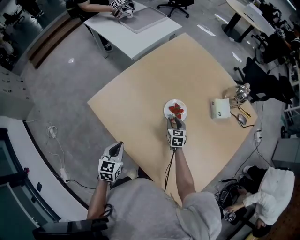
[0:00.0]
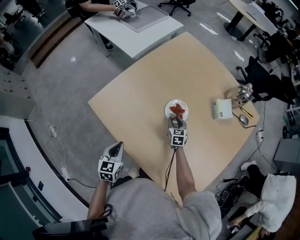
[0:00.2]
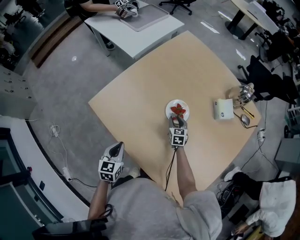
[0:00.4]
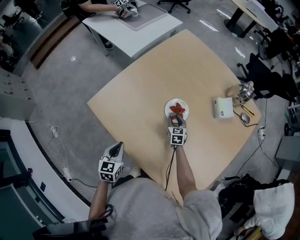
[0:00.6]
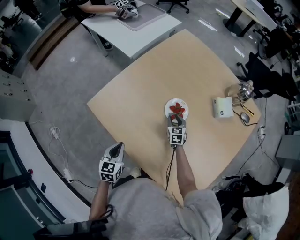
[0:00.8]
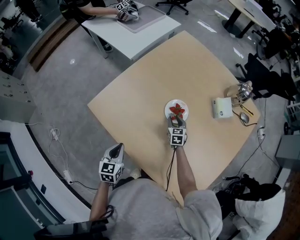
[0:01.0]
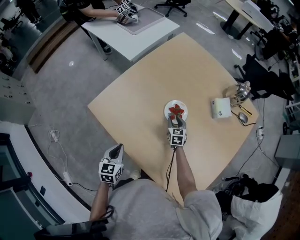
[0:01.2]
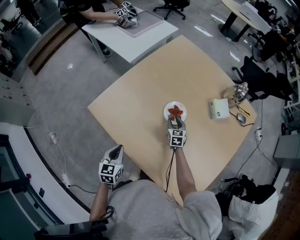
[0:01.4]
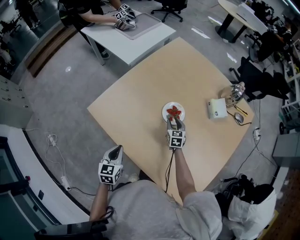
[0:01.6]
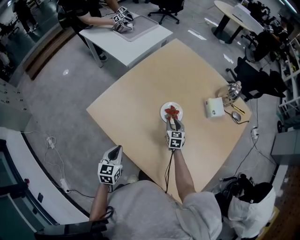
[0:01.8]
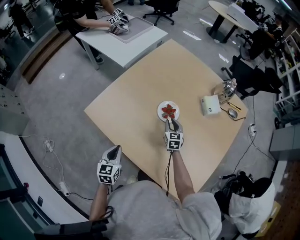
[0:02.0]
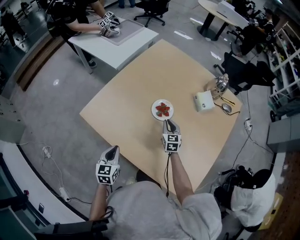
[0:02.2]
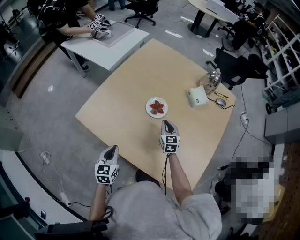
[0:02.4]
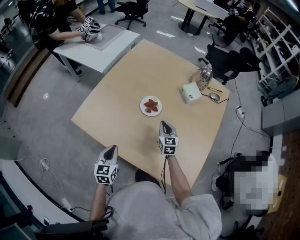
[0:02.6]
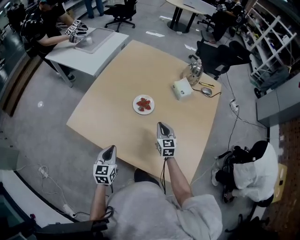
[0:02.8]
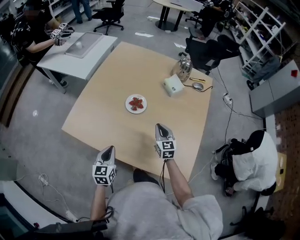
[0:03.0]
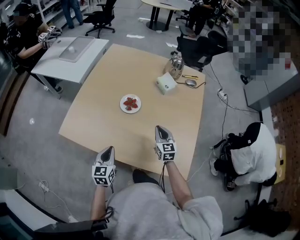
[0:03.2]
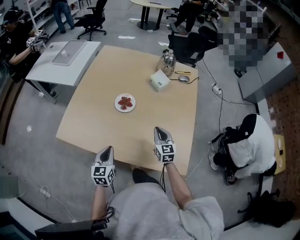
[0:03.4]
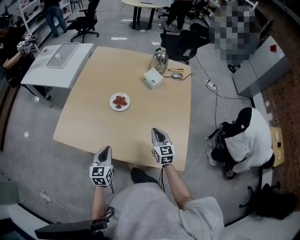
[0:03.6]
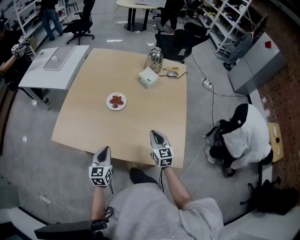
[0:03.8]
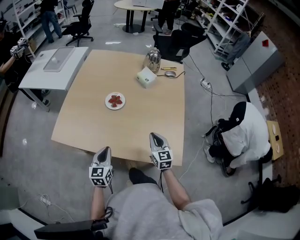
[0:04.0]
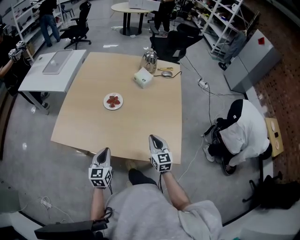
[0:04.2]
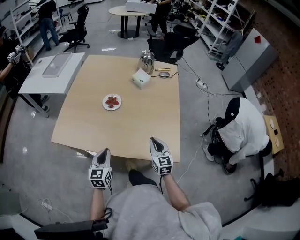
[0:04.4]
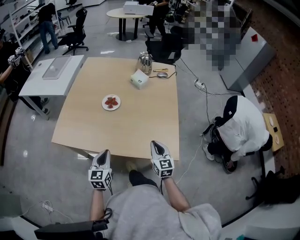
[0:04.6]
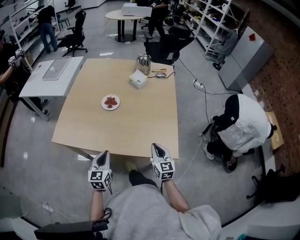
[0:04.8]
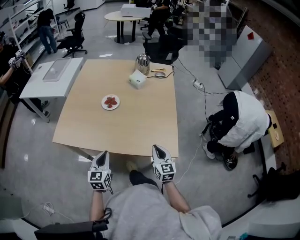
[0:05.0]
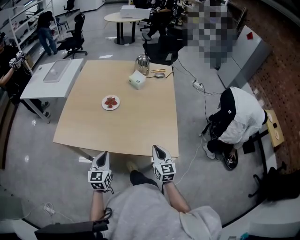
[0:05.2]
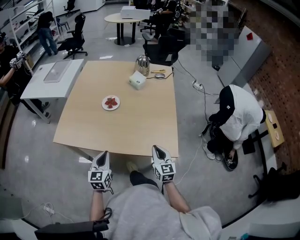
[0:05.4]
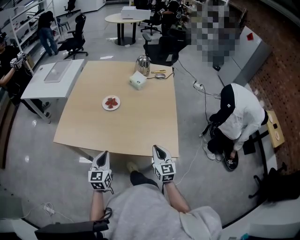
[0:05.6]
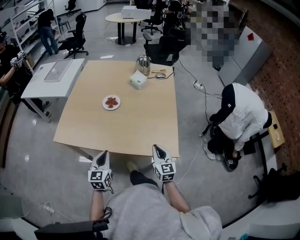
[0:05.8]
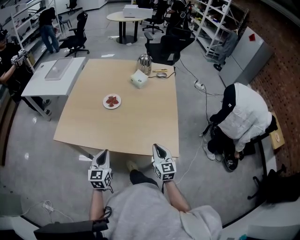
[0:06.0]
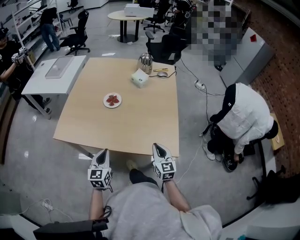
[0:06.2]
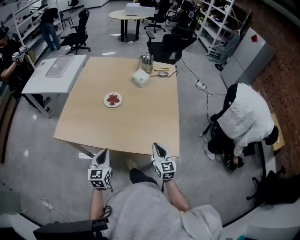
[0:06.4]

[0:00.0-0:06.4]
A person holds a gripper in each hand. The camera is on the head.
0.0 to 1.6 s: The grippers stay close to where they were, moving slightly.
1.6 to 3.2 s: The left gripper is displaced to the right by about 10 cm, and turns by approximately 20 degrees. The right gripper travels backward, upward and to the right by approximately 25 cm, swivels roughly 20 degrees, and closes up.
3.2 to 4.8 s: The right gripper shifts some 25 cm backward. Meanwhile the left gripper goes about 10 cm backward and to the right.
4.8 to 6.4 s: The grippers stay close to where they were, moving slightly.

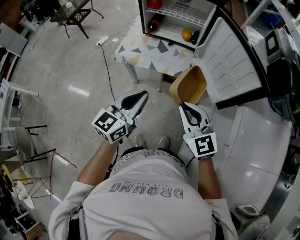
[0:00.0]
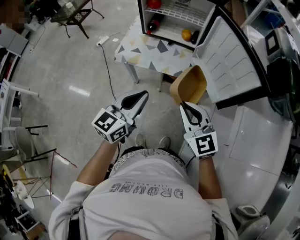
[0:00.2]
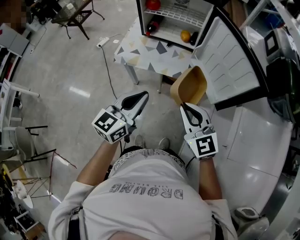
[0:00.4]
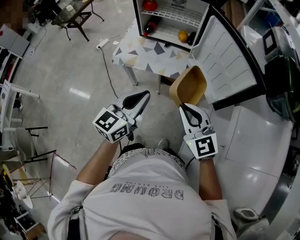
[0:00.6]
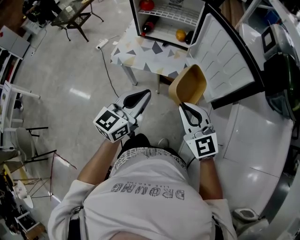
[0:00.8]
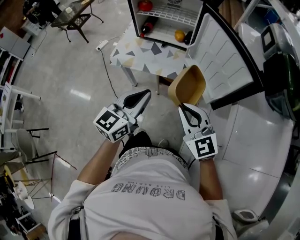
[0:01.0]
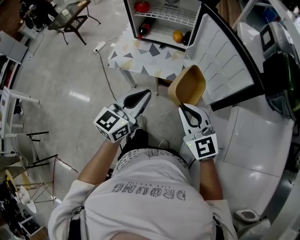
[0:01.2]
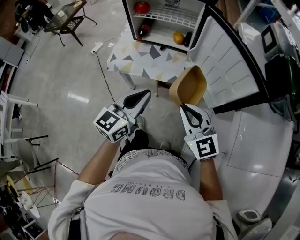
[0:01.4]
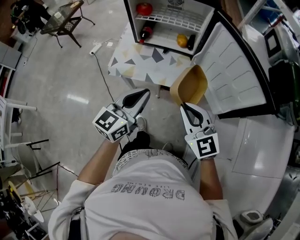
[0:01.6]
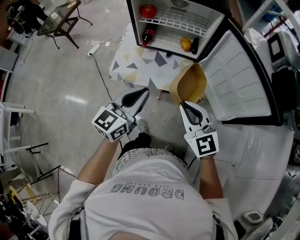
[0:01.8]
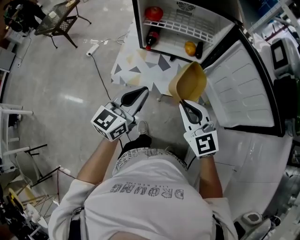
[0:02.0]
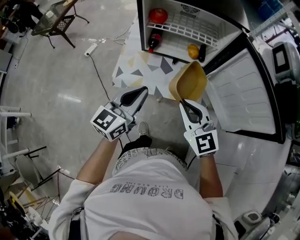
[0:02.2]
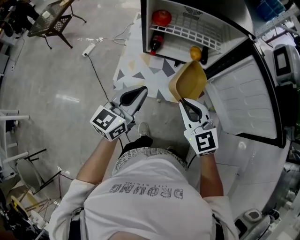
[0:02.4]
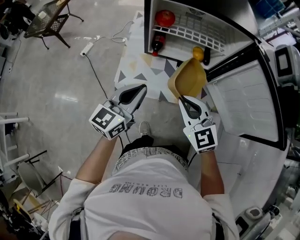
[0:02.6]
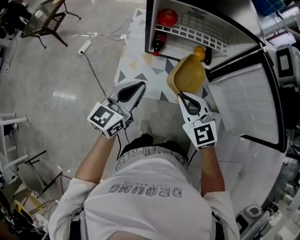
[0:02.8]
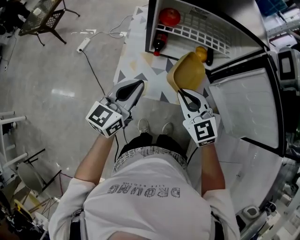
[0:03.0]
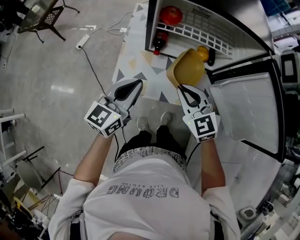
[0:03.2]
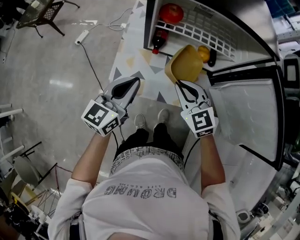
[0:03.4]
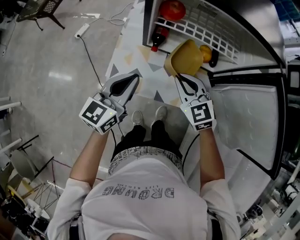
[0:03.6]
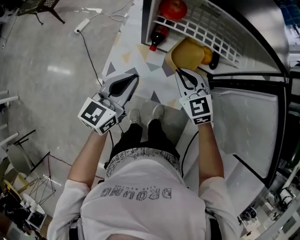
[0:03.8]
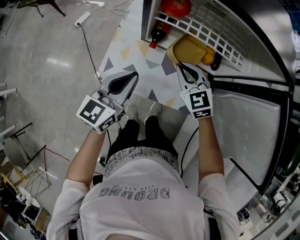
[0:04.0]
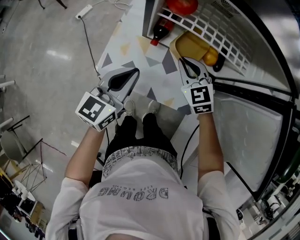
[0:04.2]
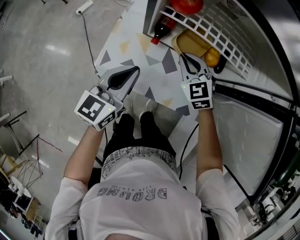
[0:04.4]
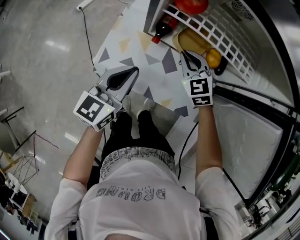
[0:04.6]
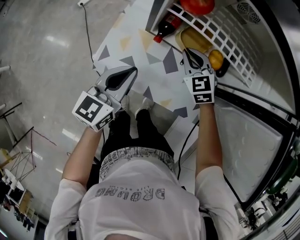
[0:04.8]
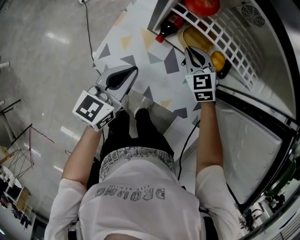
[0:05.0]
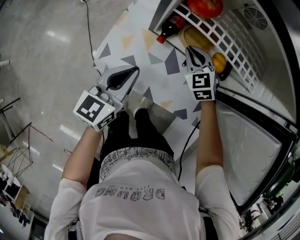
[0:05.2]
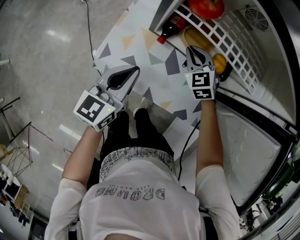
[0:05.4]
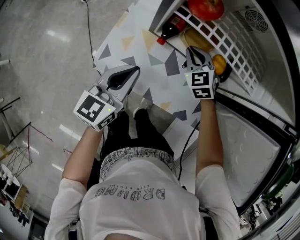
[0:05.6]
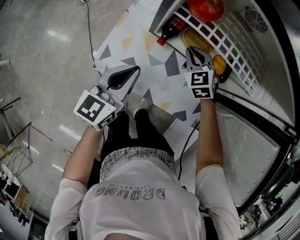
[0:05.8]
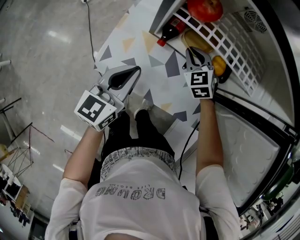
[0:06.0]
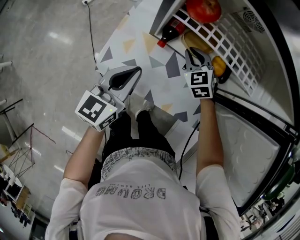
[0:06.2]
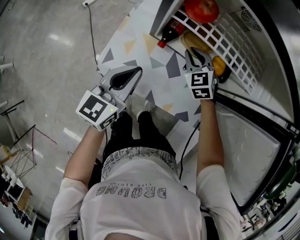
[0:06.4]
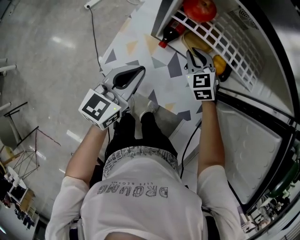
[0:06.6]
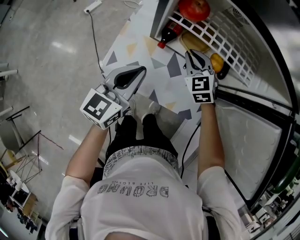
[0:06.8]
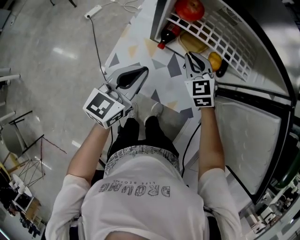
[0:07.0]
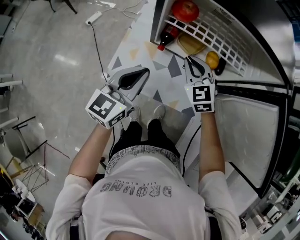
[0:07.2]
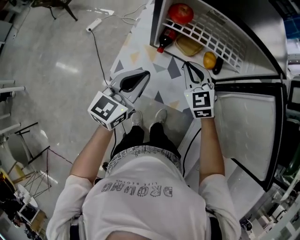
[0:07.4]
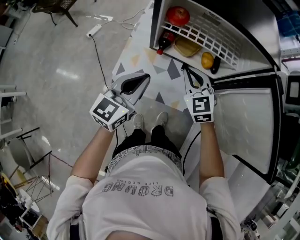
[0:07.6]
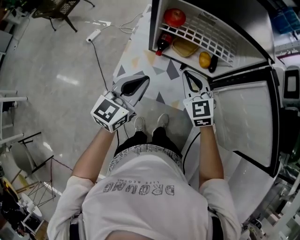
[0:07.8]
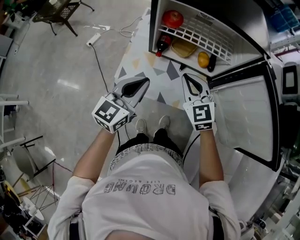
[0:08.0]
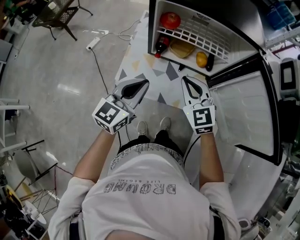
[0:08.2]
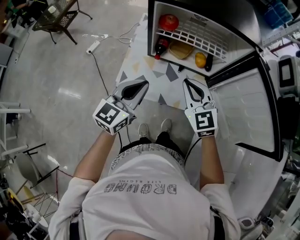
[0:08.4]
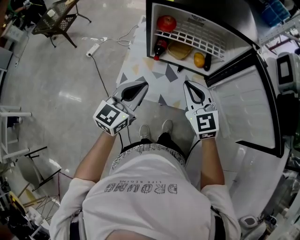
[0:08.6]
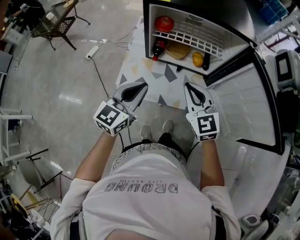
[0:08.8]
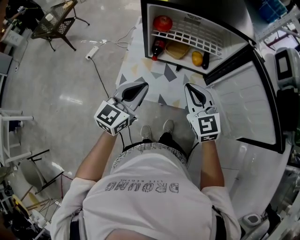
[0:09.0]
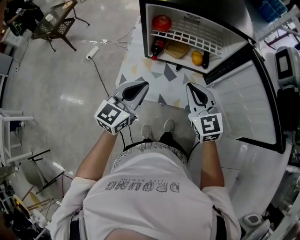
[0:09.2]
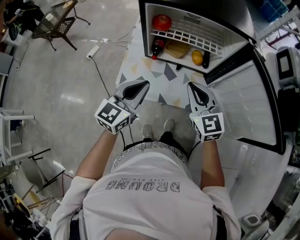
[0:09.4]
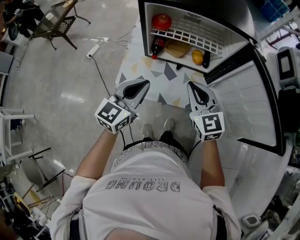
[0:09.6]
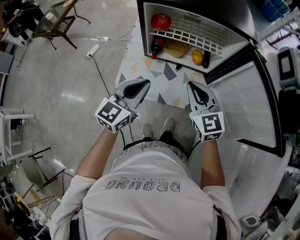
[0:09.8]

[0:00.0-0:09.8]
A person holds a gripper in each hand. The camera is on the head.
0.0 to 1.4 s: The left gripper heads forward, covering some 5 cm. The right gripper changes place by about 5 cm.
1.4 to 2.8 s: The grippers both shift forward and to the left by roughly 30 cm.
2.8 to 4.2 s: The right gripper is displaced forward and downward by about 25 cm. The left gripper travels downward and forward by approximately 10 cm.
4.2 to 5.6 s: The right gripper is displaced forward and downward by about 10 cm.
5.6 to 7.0 s: The two grippers go approximately 5 cm upward.
7.0 to 8.4 s: The right gripper goes approximately 20 cm backward and upward. The left gripper heads backward and upward, covering approximately 10 cm.
8.4 to 9.8 s: The grippers stay close to where they were, moving slightly.

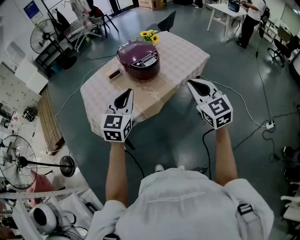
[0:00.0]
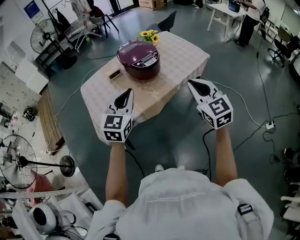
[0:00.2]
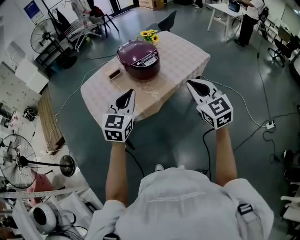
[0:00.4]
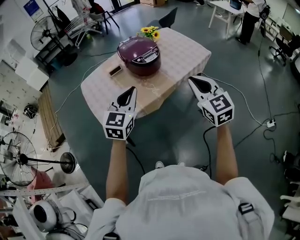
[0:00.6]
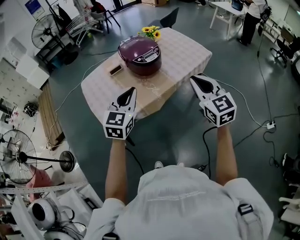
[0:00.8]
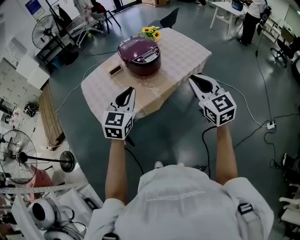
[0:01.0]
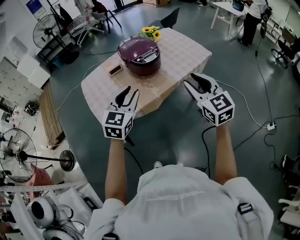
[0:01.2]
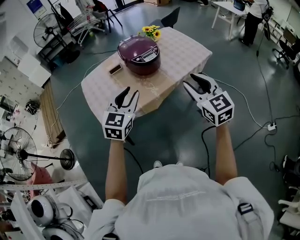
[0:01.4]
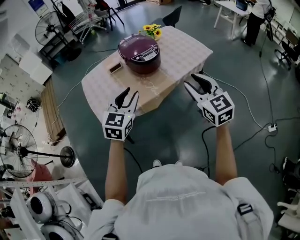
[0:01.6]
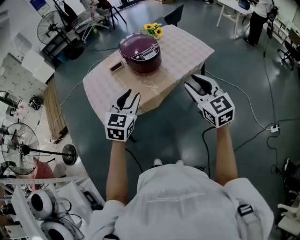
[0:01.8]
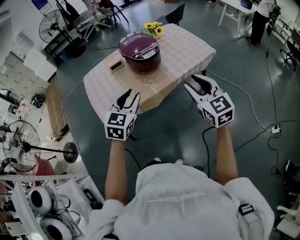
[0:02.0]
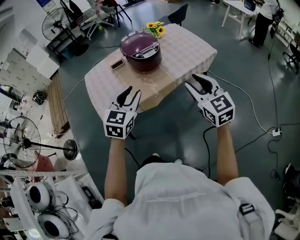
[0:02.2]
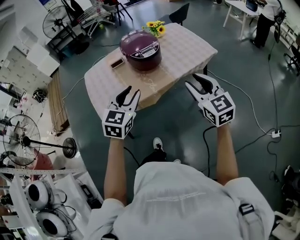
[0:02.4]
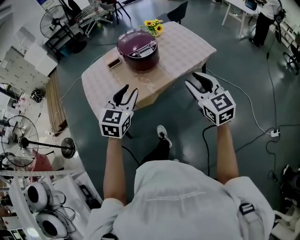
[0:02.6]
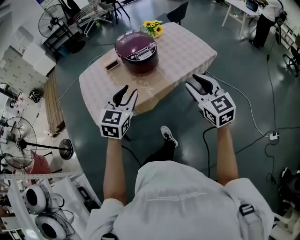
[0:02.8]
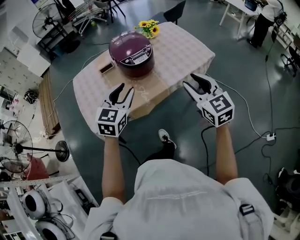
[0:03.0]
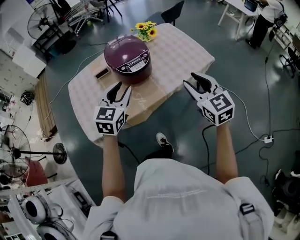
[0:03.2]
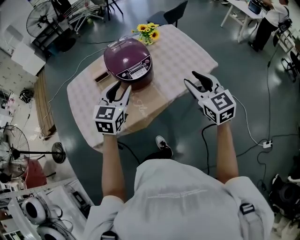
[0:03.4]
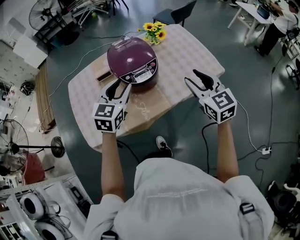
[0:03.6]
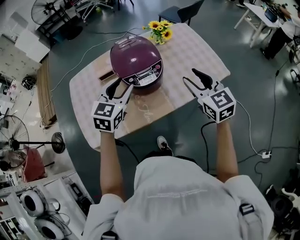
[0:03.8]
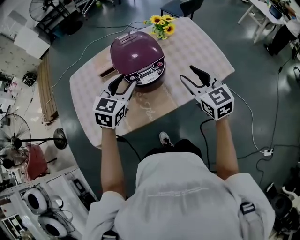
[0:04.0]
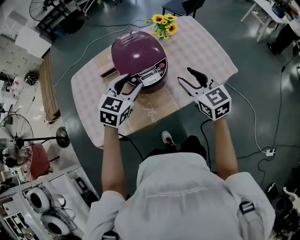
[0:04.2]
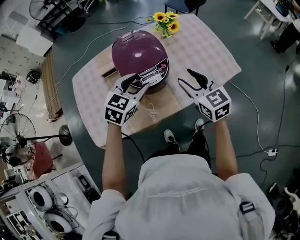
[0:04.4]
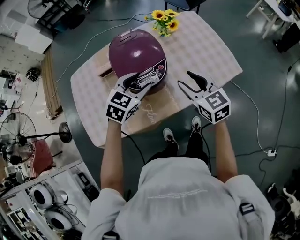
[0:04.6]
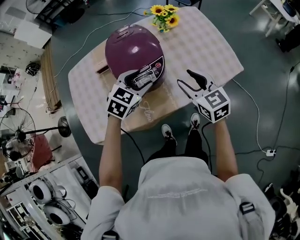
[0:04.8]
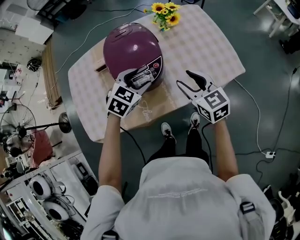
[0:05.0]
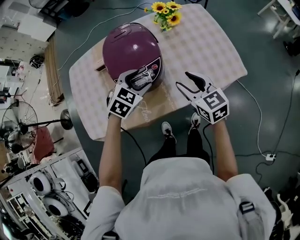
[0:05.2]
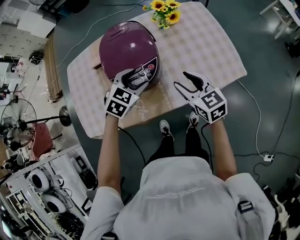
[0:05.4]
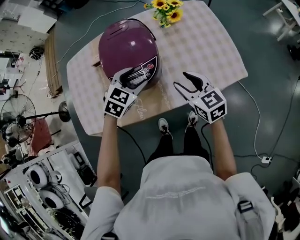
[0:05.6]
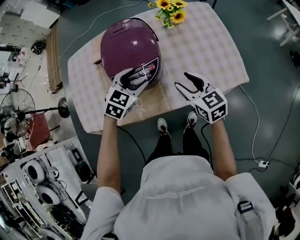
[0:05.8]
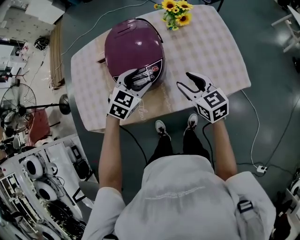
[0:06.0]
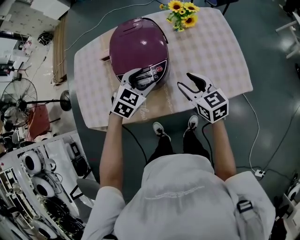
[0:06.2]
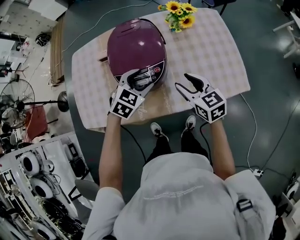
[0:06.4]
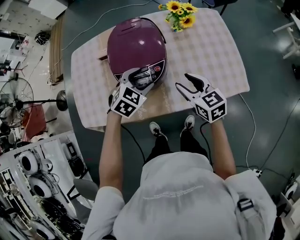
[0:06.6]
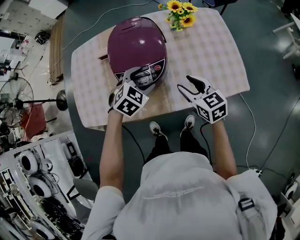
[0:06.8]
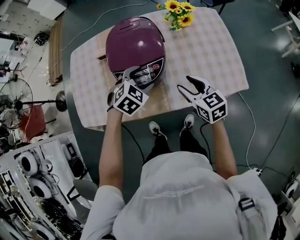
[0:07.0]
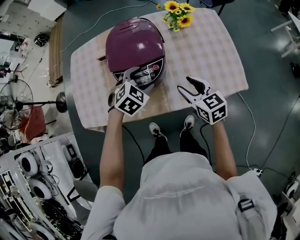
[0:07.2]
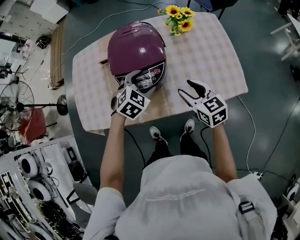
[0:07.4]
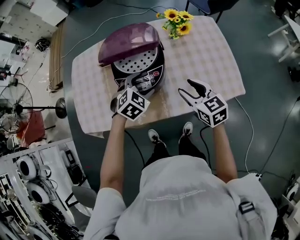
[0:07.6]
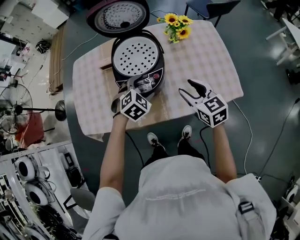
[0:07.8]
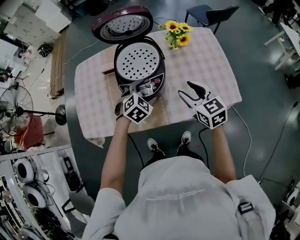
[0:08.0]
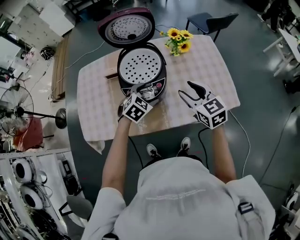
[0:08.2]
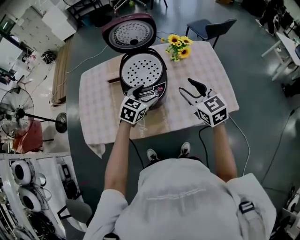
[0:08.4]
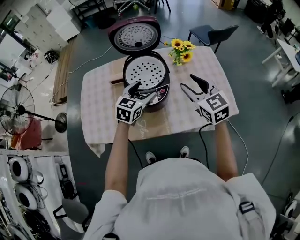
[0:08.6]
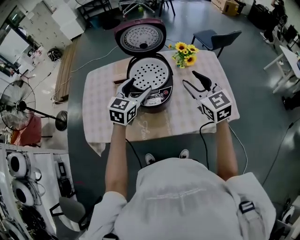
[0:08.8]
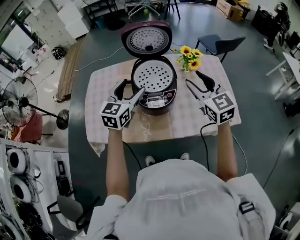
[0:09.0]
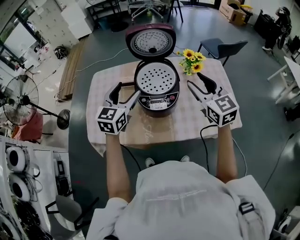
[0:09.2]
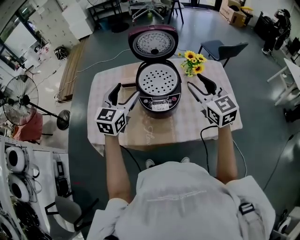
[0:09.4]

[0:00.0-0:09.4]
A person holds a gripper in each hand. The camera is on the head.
0.0 to 1.6 s: The right gripper opens up; the left gripper opens up.
1.6 to 3.2 s: The two grippers go roughly 20 cm forward and to the right.
3.2 to 4.8 s: Both grippers move forward and downward, some 25 cm. The right gripper changes its angle by about 20 degrees. The left gripper turns by roughly 30 degrees.
4.8 to 6.2 s: The left gripper changes place by approximately 5 cm. Meanwhile the right gripper heads downward, covering about 5 cm.
6.2 to 7.8 s: There are only small adjustments of the grippers.
7.8 to 9.4 s: The left gripper shifts roughly 25 cm upward and to the left, and points its fingers some 40 degrees further upward. The right gripper is displaced upward by some 15 cm, and changes its angle by some 20 degrees.
